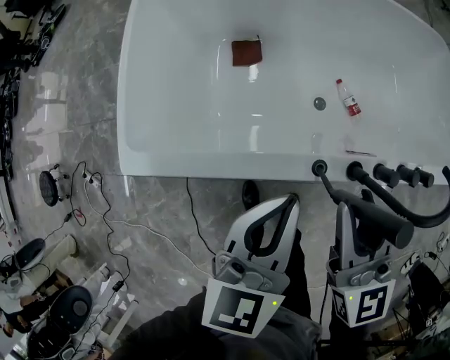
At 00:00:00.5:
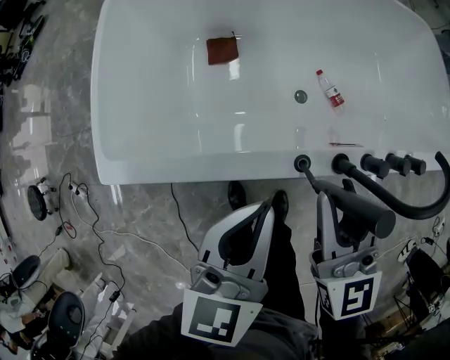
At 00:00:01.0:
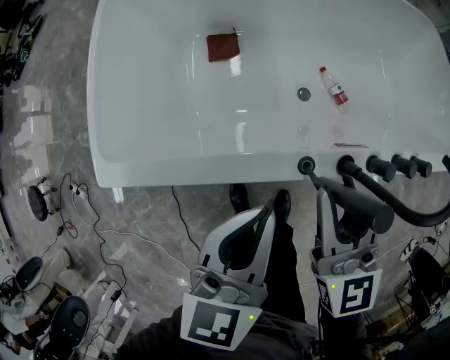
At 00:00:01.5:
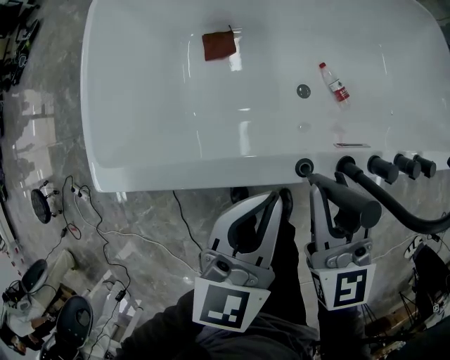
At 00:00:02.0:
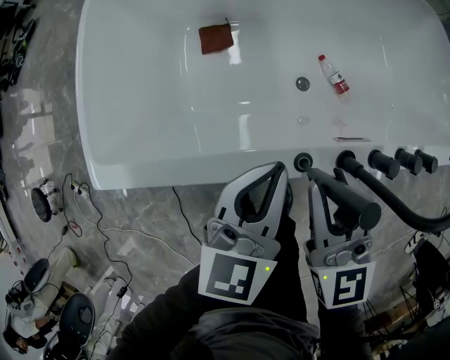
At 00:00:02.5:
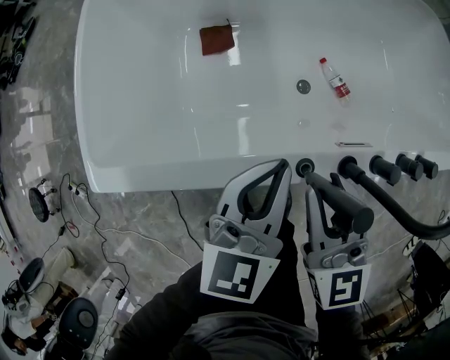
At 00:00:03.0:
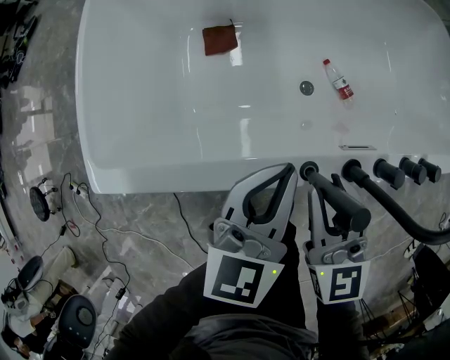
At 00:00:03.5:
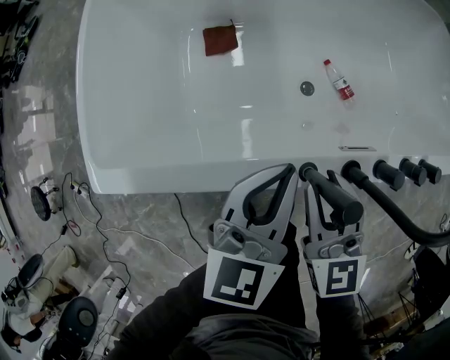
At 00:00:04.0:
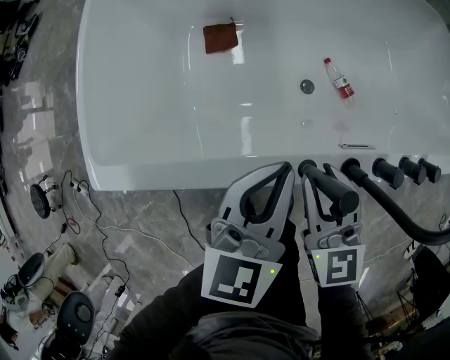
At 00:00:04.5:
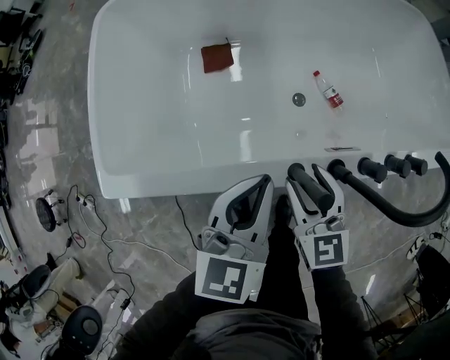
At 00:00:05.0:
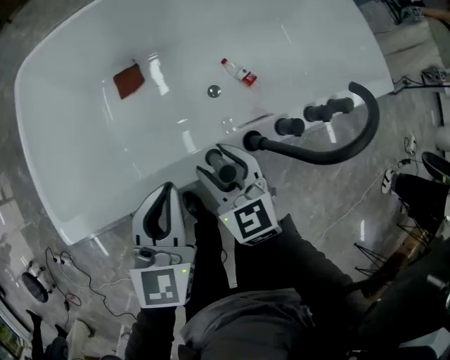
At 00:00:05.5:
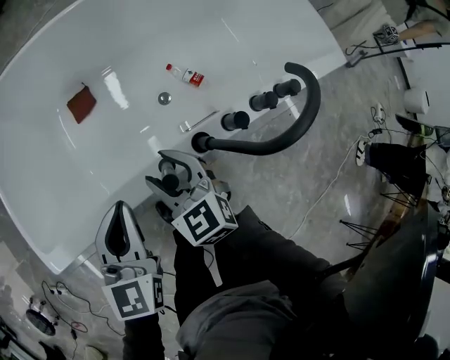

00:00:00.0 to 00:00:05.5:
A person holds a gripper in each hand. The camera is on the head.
00:00:00.0 to 00:00:02.0: The two grippers go roughly 10 cm downward.
00:00:02.0 to 00:00:03.5: The right gripper moves downward, some 5 cm.
00:00:03.5 to 00:00:05.5: The right gripper opens.

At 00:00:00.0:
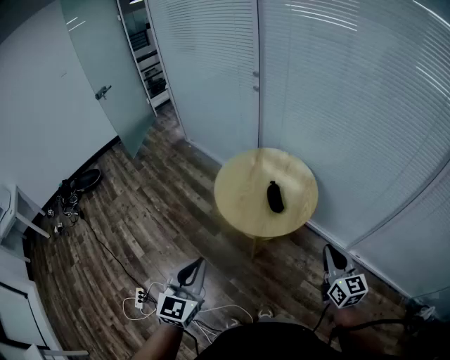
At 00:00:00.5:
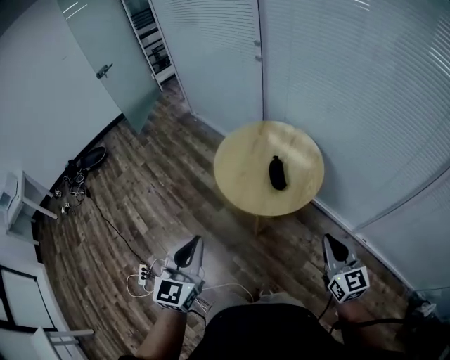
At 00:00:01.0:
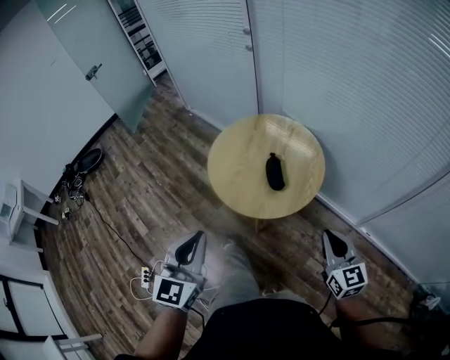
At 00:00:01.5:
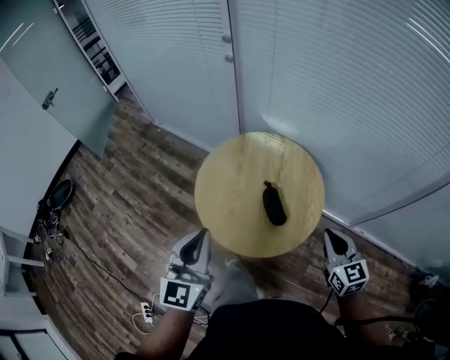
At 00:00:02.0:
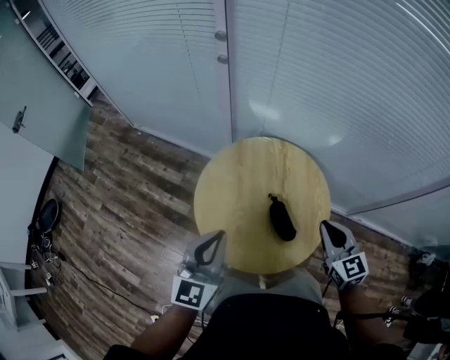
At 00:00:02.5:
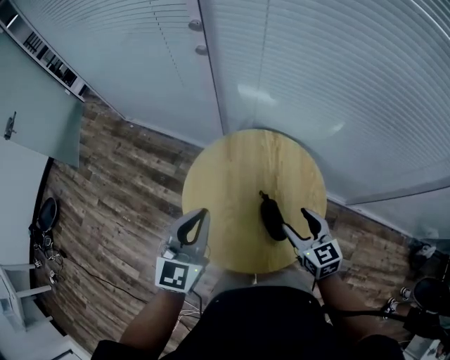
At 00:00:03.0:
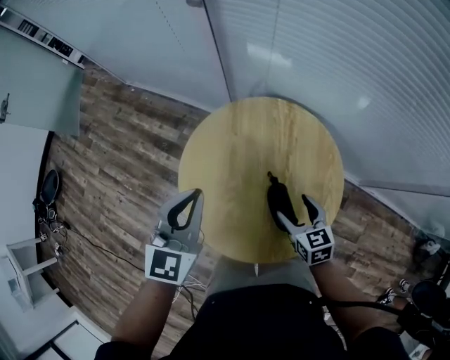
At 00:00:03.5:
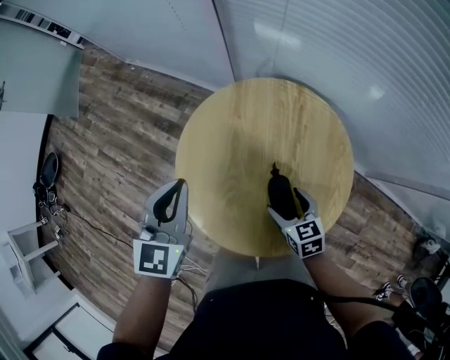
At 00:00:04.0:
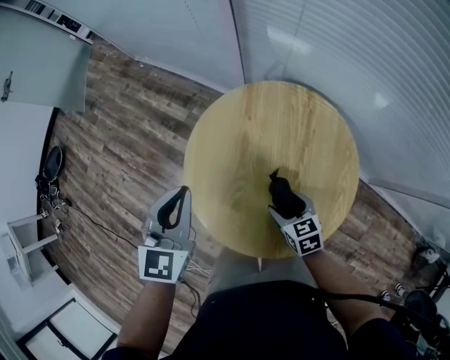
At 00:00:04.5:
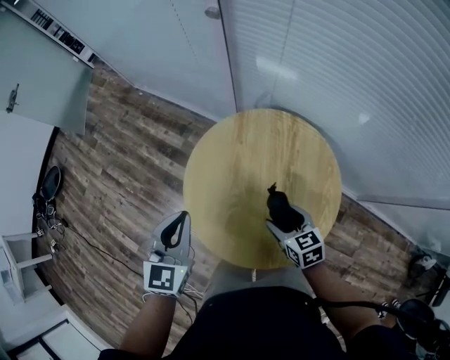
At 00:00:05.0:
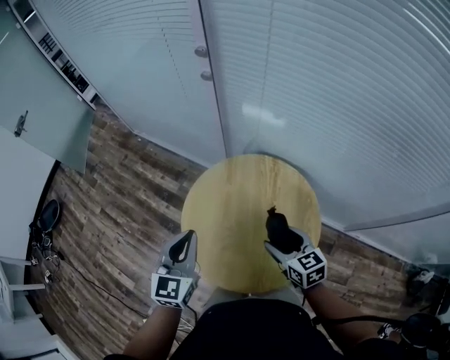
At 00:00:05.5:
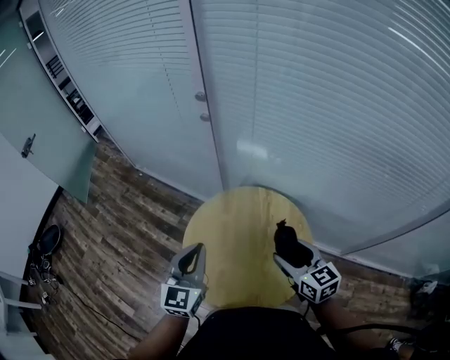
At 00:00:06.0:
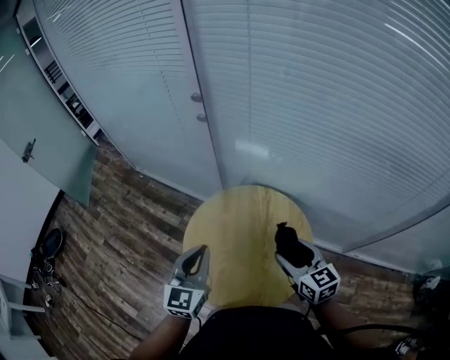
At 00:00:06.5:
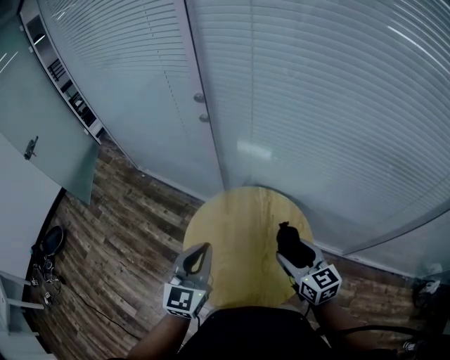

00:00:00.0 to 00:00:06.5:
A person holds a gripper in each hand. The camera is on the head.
00:00:00.0 to 00:00:02.0: The grippers both shift forward by approximately 40 cm. The left gripper rotates some 20 degrees.
00:00:02.0 to 00:00:04.5: The right gripper travels downward and to the left by roughly 20 cm, changes its angle by some 30 degrees, and opens its fingers. The left gripper moves downward and forward, about 15 cm, and rotates approximately 20 degrees.
00:00:04.5 to 00:00:06.5: The right gripper travels upward by approximately 25 cm, and changes its angle by approximately 30 degrees, while the left gripper is displaced upward and to the right by about 15 cm.

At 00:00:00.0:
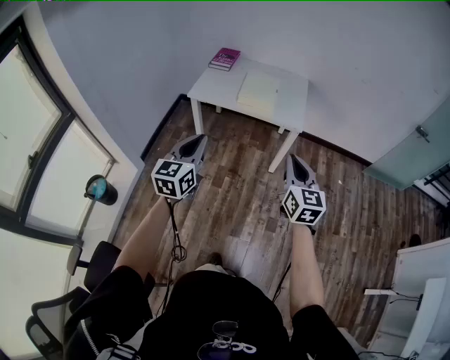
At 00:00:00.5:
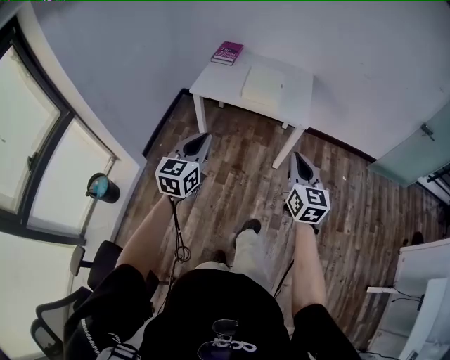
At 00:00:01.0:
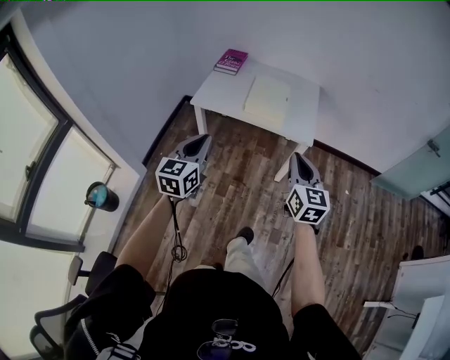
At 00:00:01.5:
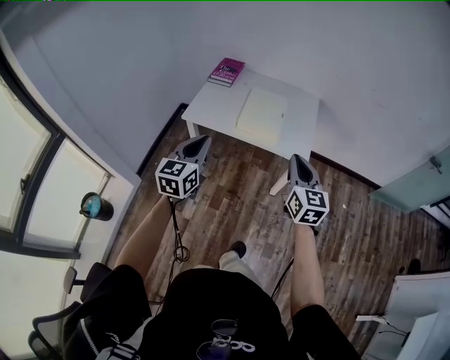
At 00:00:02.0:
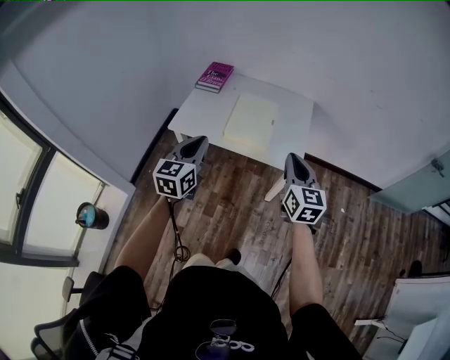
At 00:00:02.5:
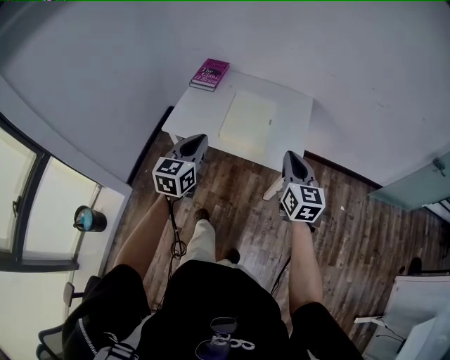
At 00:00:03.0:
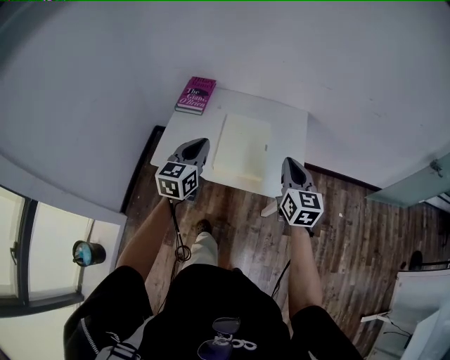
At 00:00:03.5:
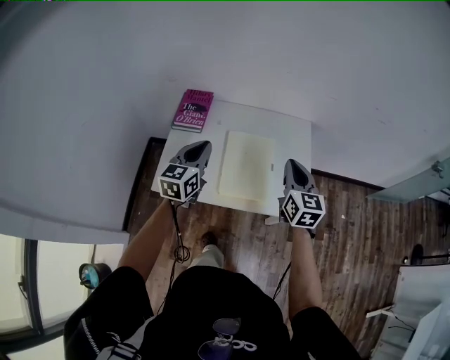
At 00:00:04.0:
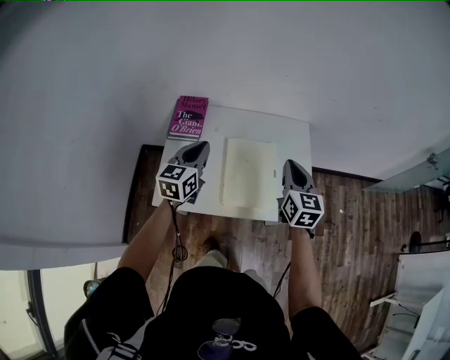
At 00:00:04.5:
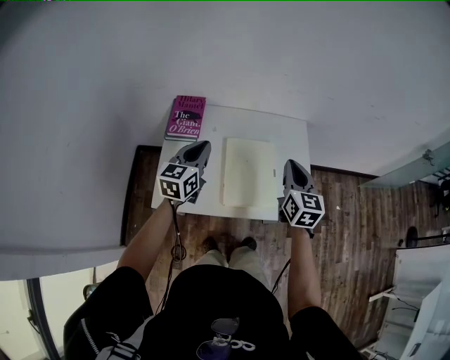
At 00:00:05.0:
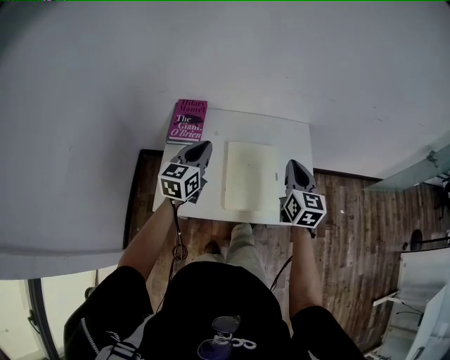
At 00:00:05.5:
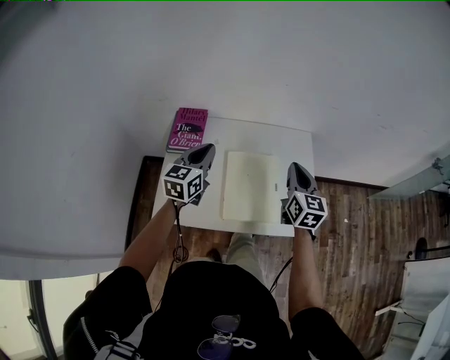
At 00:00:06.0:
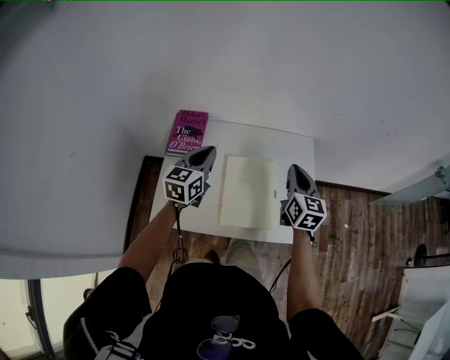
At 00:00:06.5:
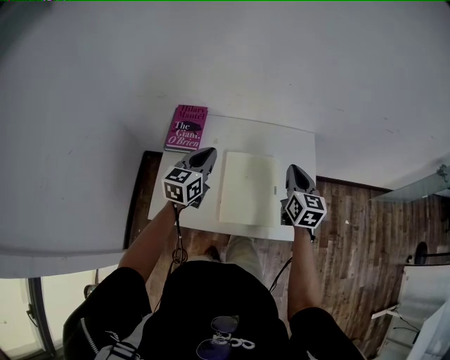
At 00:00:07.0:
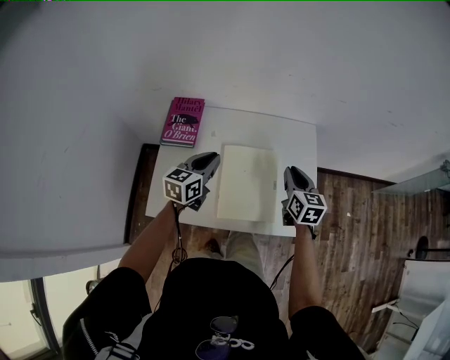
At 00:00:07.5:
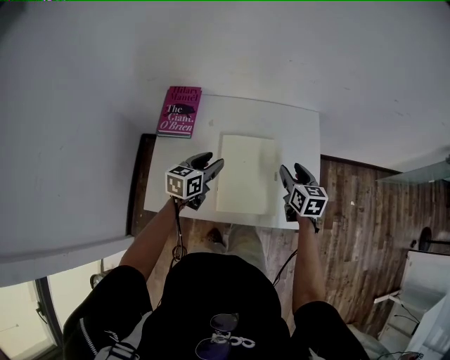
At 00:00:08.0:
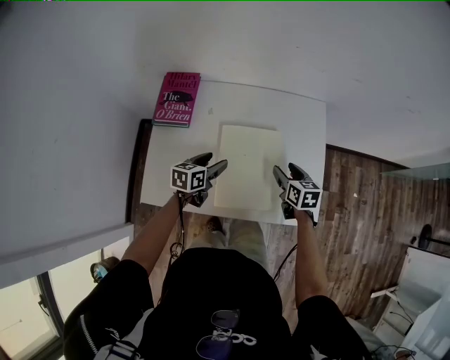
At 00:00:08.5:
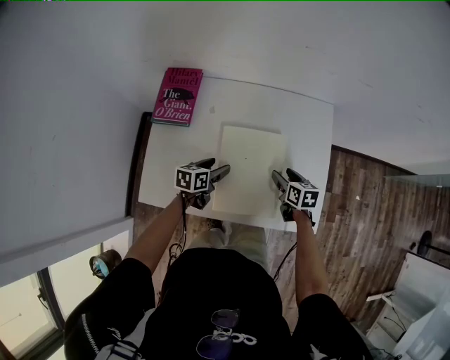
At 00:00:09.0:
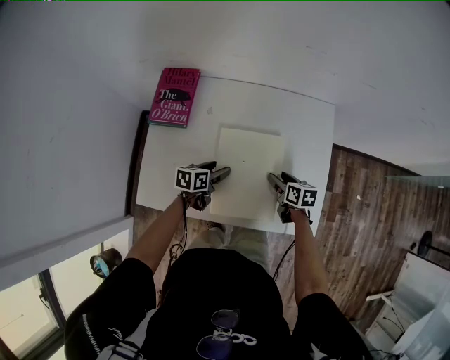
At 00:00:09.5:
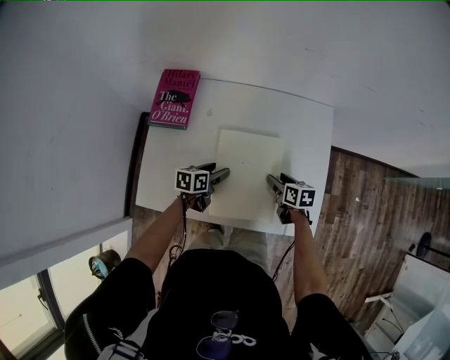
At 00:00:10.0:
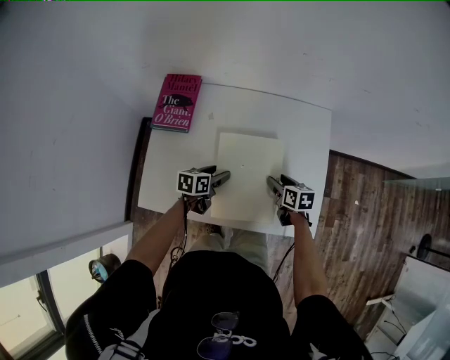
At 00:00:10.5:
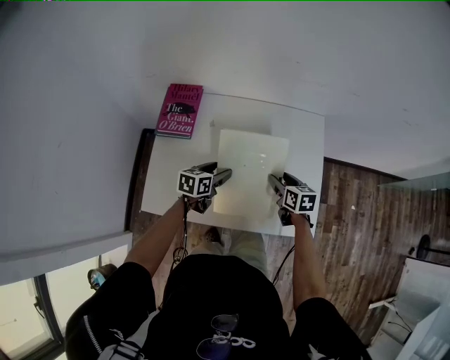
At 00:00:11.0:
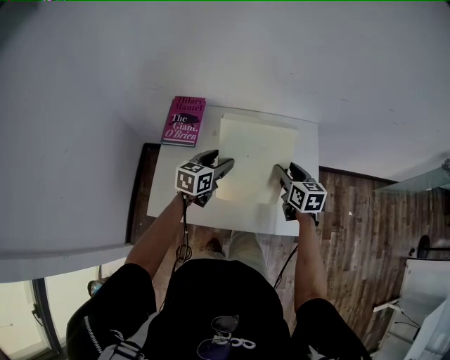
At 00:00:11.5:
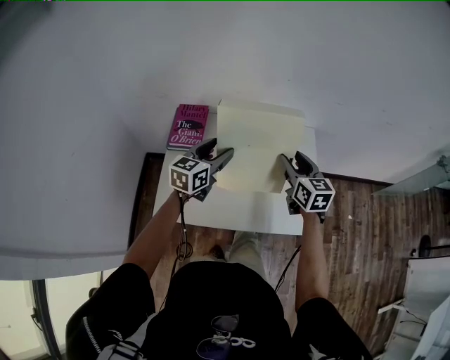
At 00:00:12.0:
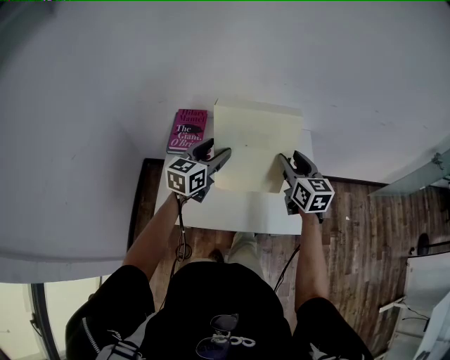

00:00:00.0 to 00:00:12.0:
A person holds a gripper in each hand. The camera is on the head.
00:00:00.0 to 00:00:02.0: Both grippers travel together forward, about 35 cm.
00:00:02.0 to 00:00:04.0: The two grippers go about 35 cm forward.
00:00:04.0 to 00:00:06.0: Both grippers travel together forward, roughly 10 cm.
00:00:06.0 to 00:00:08.0: The grippers both shift downward by roughly 25 cm. The right gripper rotates approximately 30 degrees, and opens up, while the left gripper rotates some 30 degrees, and opens.
00:00:08.0 to 00:00:10.0: Both grippers travel together downward, roughly 5 cm.
00:00:10.0 to 00:00:12.0: The grippers both shift upward by approximately 30 cm. The left gripper swivels about 40 degrees, while the right gripper rotates roughly 40 degrees.

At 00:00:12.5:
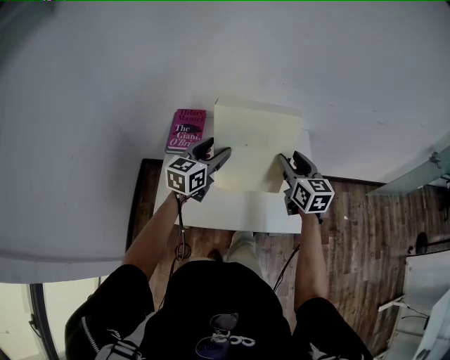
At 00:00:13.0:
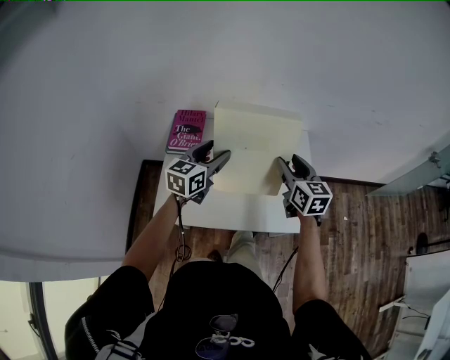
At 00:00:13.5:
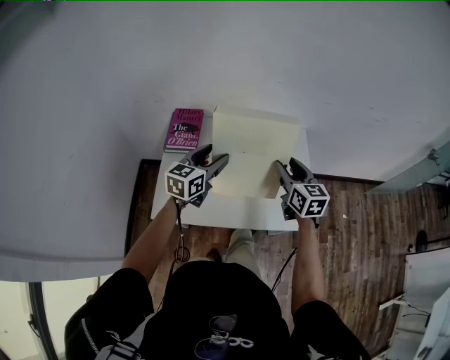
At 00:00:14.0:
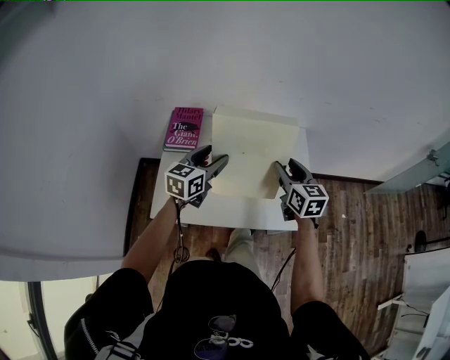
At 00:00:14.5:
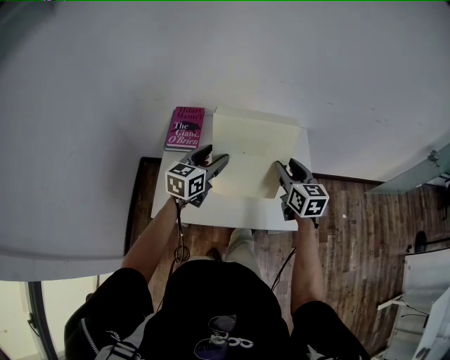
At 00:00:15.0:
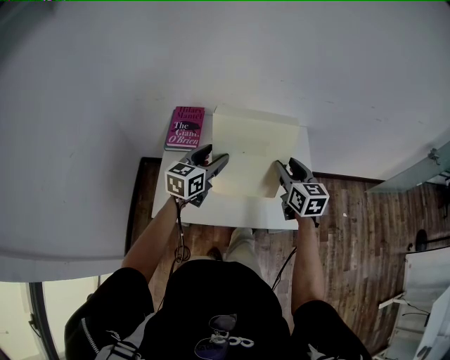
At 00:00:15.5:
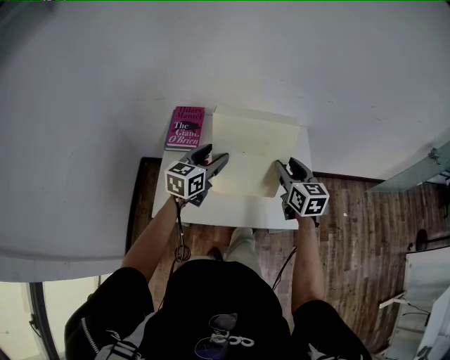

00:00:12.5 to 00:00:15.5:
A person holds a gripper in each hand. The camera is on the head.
00:00:12.5 to 00:00:14.0: The grippers stay close to where they were, moving slightly.
00:00:14.0 to 00:00:15.5: Neither gripper changes place.
